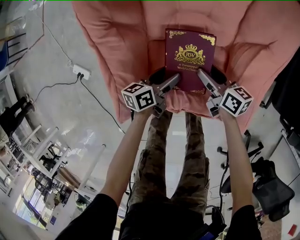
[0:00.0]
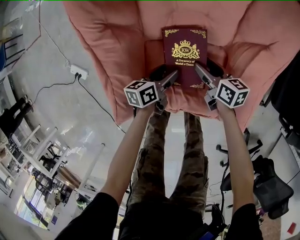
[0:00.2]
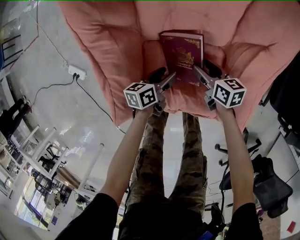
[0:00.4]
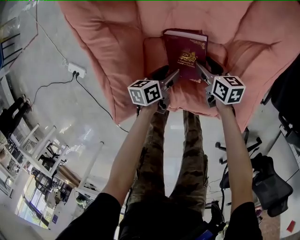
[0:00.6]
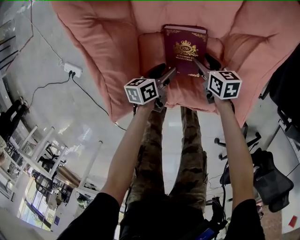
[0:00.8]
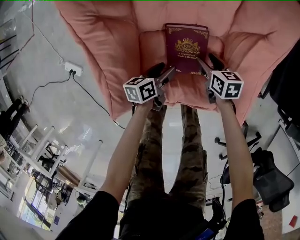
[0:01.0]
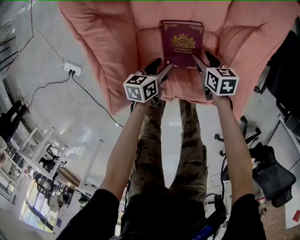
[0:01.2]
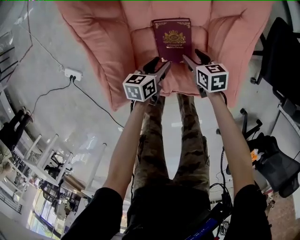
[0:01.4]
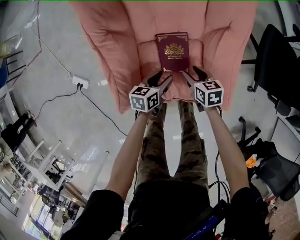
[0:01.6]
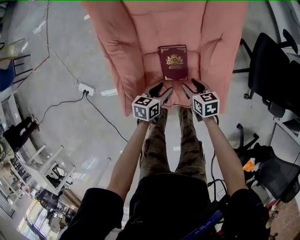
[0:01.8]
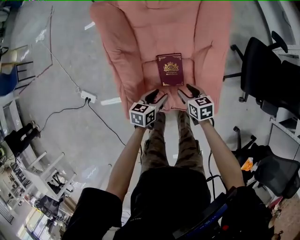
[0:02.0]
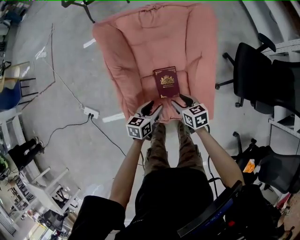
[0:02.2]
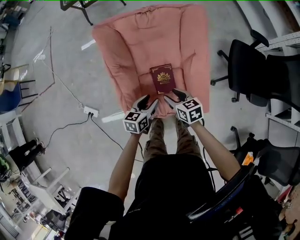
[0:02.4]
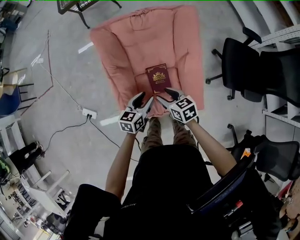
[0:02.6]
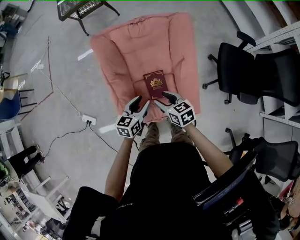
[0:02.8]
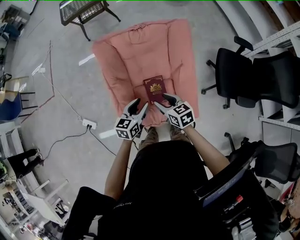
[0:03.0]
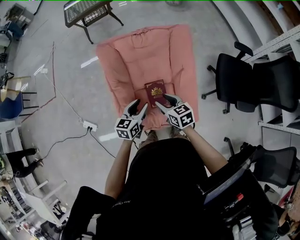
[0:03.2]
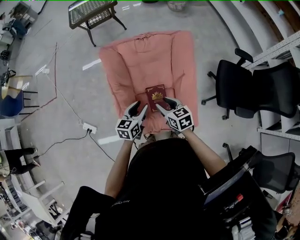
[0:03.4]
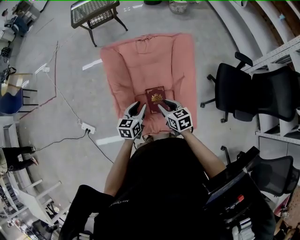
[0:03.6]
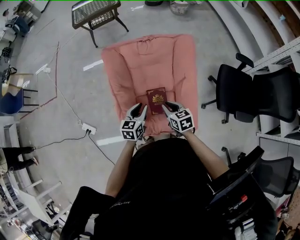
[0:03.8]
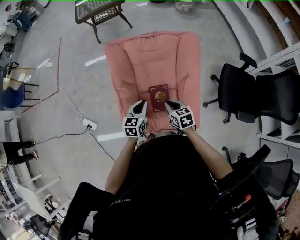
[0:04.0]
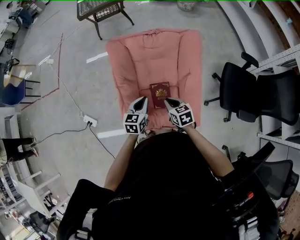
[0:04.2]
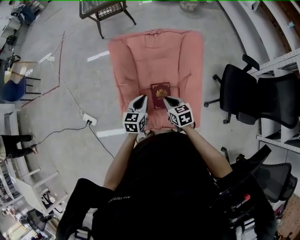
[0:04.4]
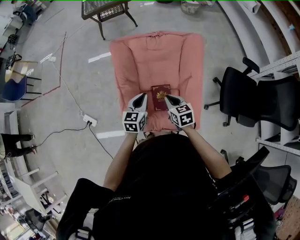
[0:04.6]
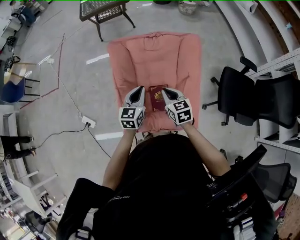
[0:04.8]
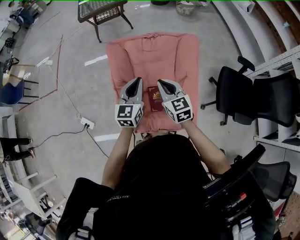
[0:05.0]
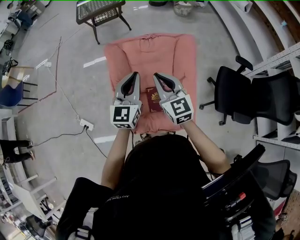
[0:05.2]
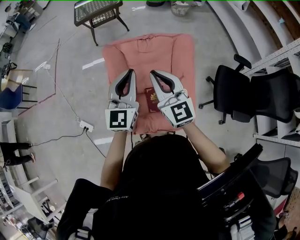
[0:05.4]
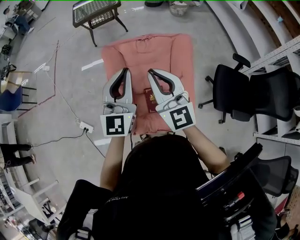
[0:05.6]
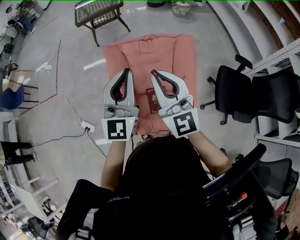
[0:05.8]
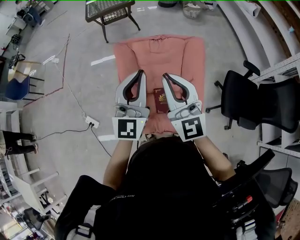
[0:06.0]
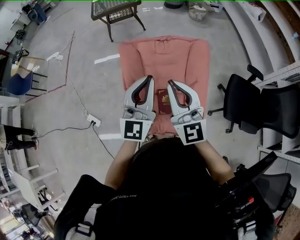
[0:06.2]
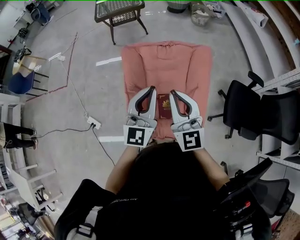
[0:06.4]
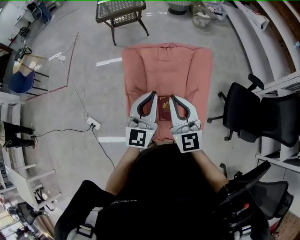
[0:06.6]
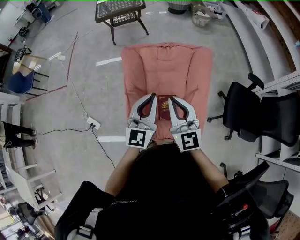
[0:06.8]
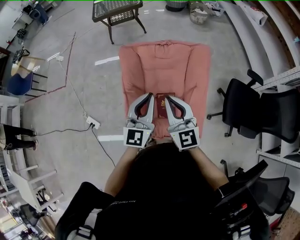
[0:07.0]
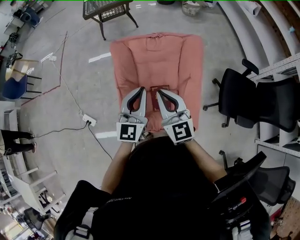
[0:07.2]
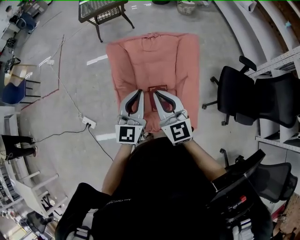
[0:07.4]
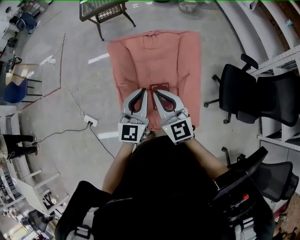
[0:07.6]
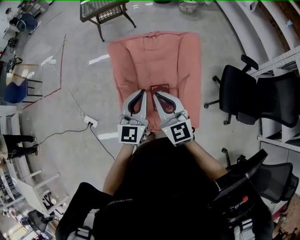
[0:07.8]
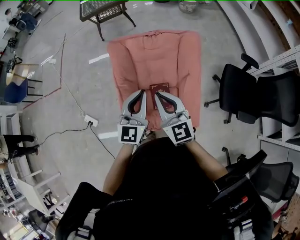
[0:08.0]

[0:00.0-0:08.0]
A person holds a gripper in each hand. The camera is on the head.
0:00.0 to 0:01.6: The right gripper goes about 5 cm backward, travels downward and back again, approximately 10 cm each way, and turns by some 30 degrees. The left gripper shifts some 5 cm upward.
0:01.6 to 0:03.2: Both grippers travel together upward, approximately 35 cm. The left gripper turns by some 30 degrees.
0:03.2 to 0:04.8: The left gripper travels forward and upward by about 10 cm, and closes its fingers. The right gripper moves about 5 cm, and closes its fingers.
0:04.8 to 0:06.4: Both grippers travel together upward, about 20 cm. The right gripper angles its fingers upward, by about 40 degrees. Meanwhile the left gripper swivels about 30 degrees.
0:06.4 to 0:08.0: The two grippers go approximately 5 cm downward.

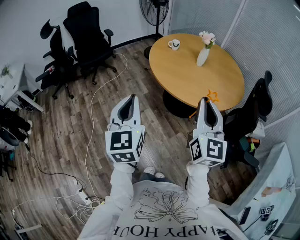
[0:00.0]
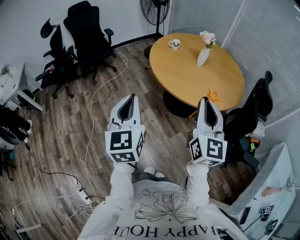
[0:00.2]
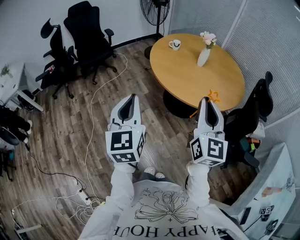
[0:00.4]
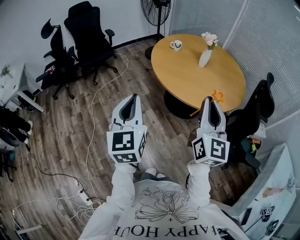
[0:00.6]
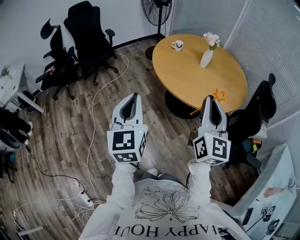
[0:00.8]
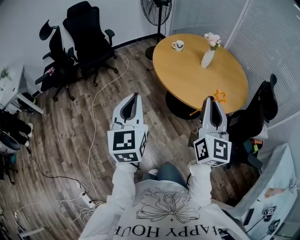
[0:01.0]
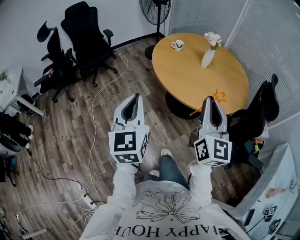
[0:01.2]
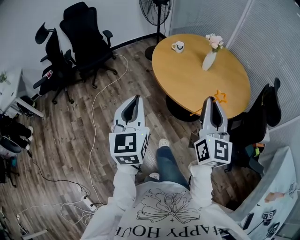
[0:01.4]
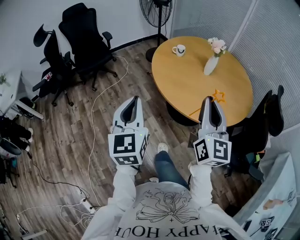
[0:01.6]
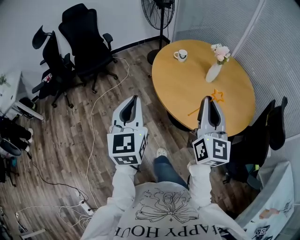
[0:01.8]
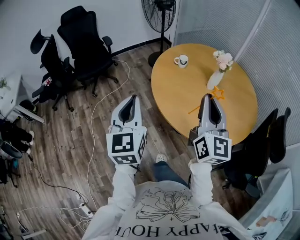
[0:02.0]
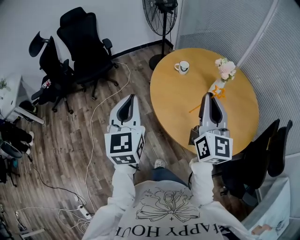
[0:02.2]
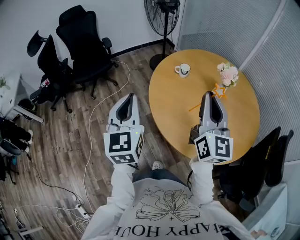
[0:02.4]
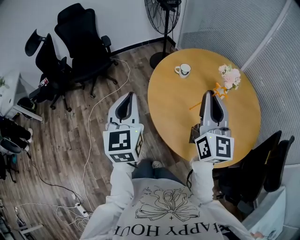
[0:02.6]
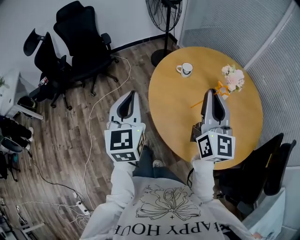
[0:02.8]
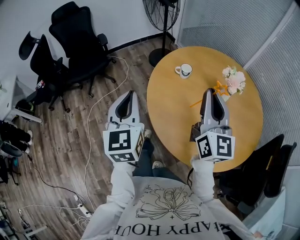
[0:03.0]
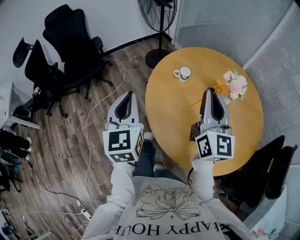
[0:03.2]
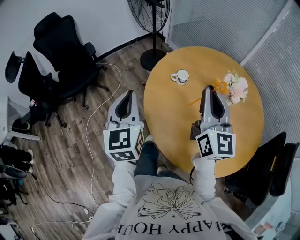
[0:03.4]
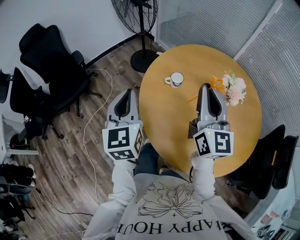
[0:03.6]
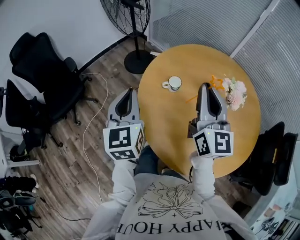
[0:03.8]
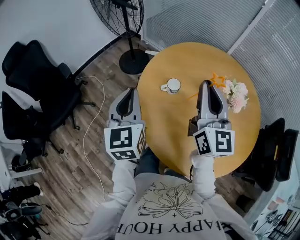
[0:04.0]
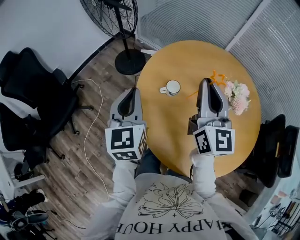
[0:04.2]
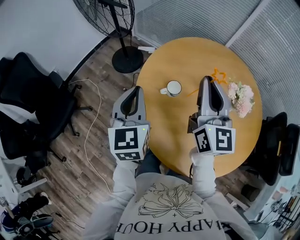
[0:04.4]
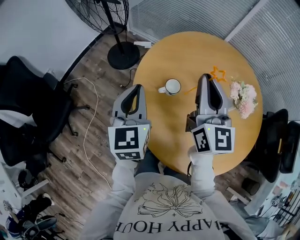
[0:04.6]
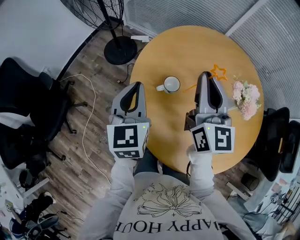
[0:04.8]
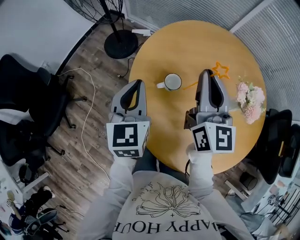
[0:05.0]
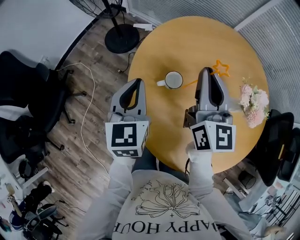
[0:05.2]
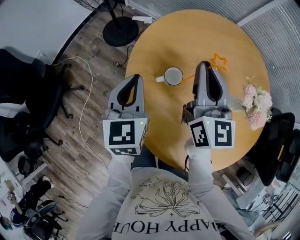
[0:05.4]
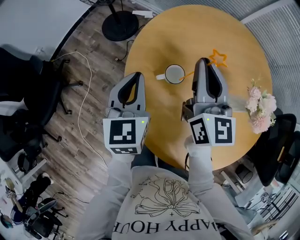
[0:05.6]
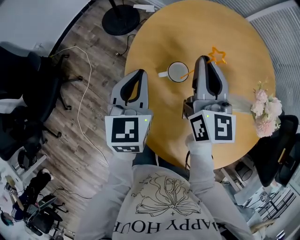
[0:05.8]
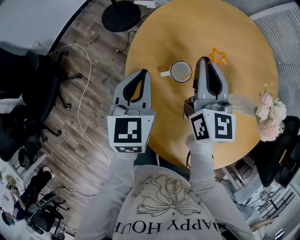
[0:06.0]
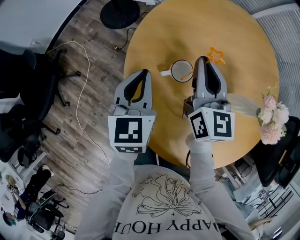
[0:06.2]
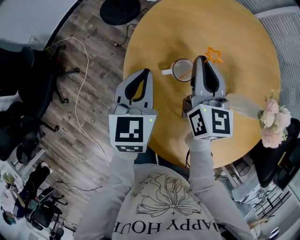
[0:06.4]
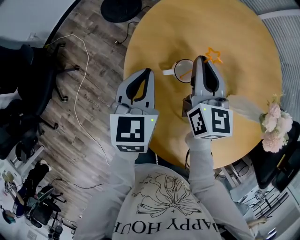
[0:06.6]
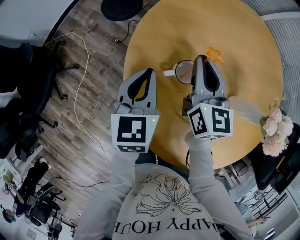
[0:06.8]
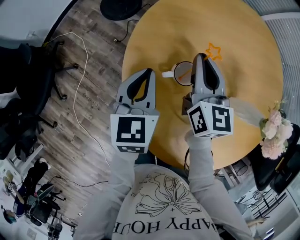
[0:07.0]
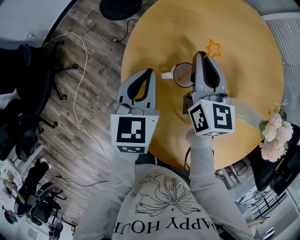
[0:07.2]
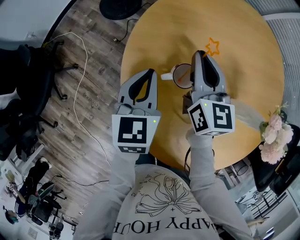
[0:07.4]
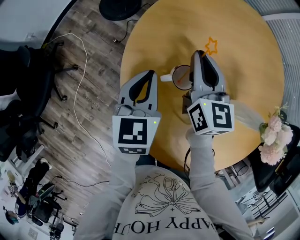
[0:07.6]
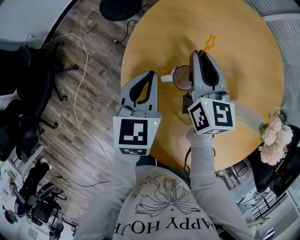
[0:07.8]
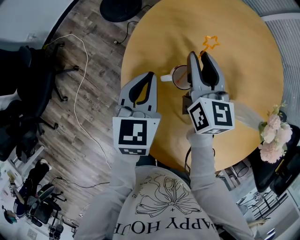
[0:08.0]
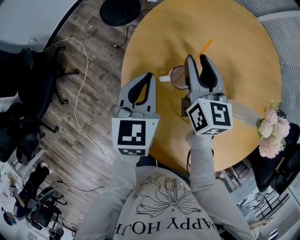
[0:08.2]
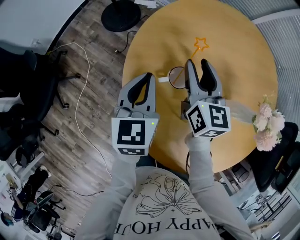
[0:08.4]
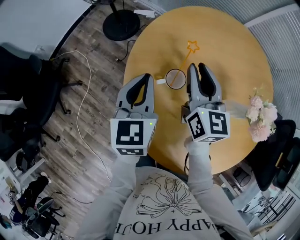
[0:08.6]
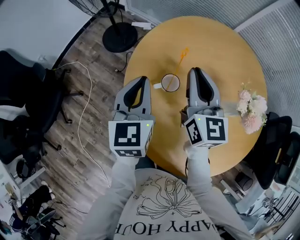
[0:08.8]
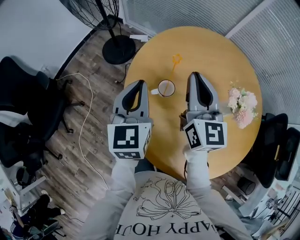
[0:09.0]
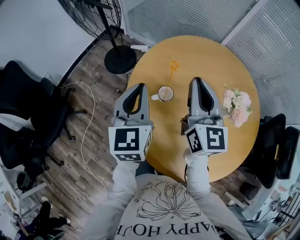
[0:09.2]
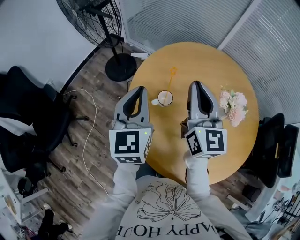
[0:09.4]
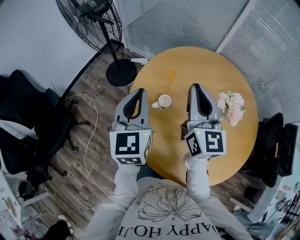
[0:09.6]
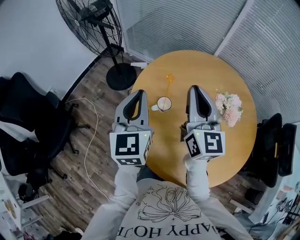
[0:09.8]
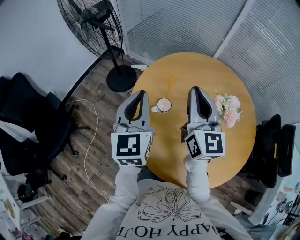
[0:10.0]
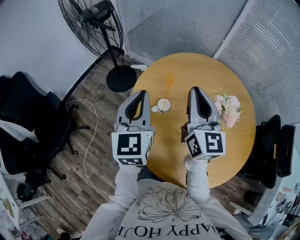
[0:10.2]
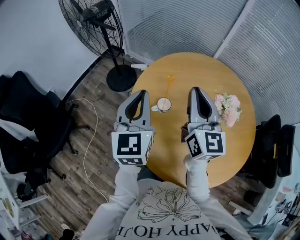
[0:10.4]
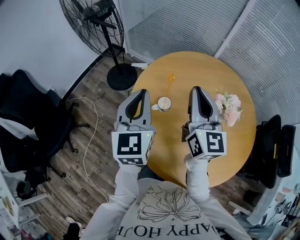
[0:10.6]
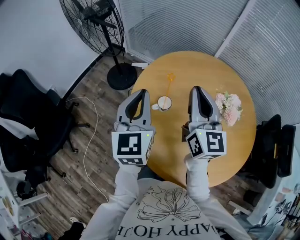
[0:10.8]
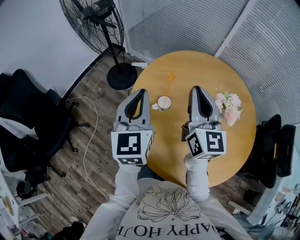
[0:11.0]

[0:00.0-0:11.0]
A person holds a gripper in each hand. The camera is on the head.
0:00.0 to 0:01.6: Both grippers move forward, about 15 cm.
0:01.6 to 0:03.2: The grippers both shift forward by some 40 cm.
0:03.2 to 0:04.8: The left gripper changes place by roughly 35 cm, and changes its angle by some 30 degrees. The right gripper moves approximately 25 cm, and turns by approximately 20 degrees.
0:04.8 to 0:06.2: The right gripper shifts roughly 20 cm downward and forward; the left gripper goes approximately 15 cm downward.
0:06.2 to 0:07.8: The left gripper moves some 5 cm; the right gripper is displaced downward by approximately 5 cm.
0:07.8 to 0:09.4: The left gripper moves upward, approximately 25 cm, and changes its angle by approximately 20 degrees. The right gripper is displaced upward and backward by about 30 cm, swivels about 20 degrees, and opens, then closes once more.
0:09.4 to 0:11.0: The grippers move only a little.

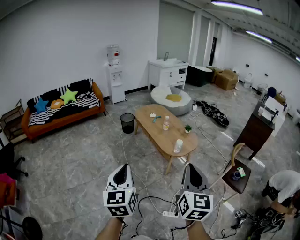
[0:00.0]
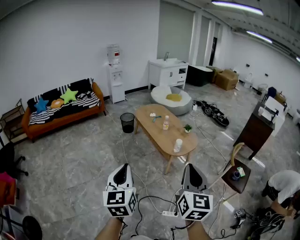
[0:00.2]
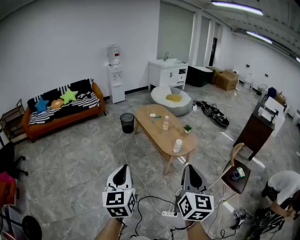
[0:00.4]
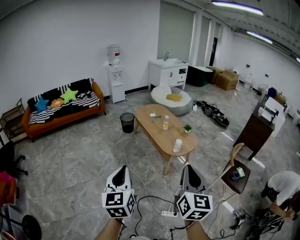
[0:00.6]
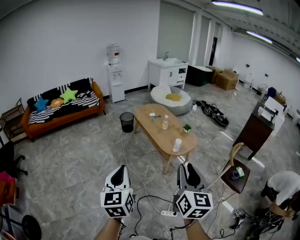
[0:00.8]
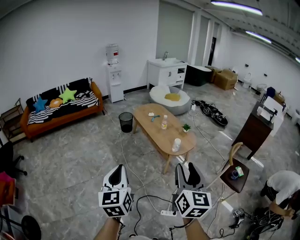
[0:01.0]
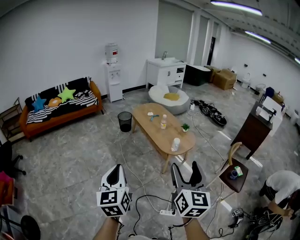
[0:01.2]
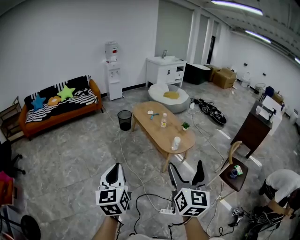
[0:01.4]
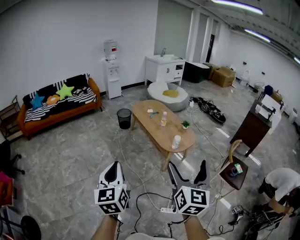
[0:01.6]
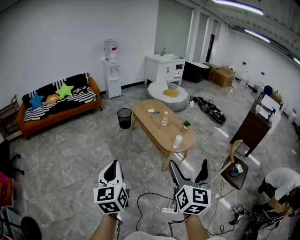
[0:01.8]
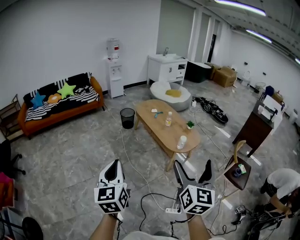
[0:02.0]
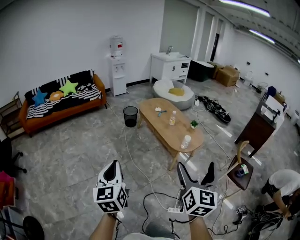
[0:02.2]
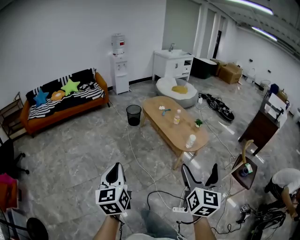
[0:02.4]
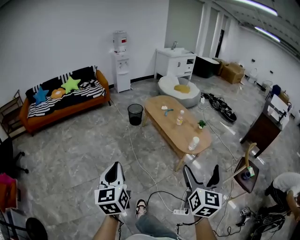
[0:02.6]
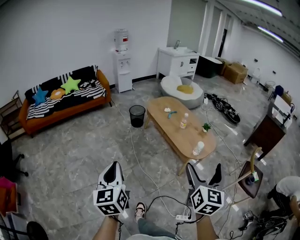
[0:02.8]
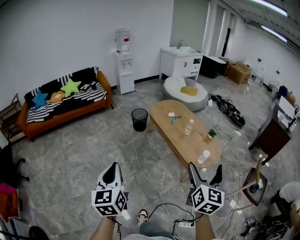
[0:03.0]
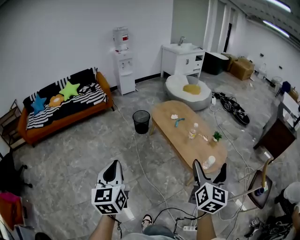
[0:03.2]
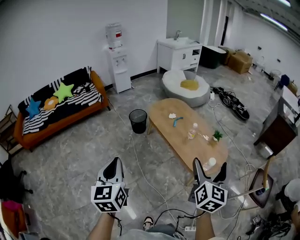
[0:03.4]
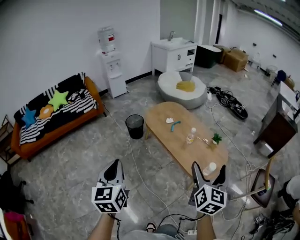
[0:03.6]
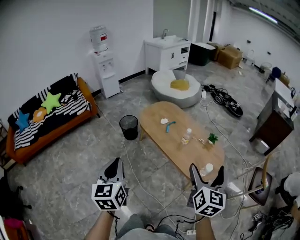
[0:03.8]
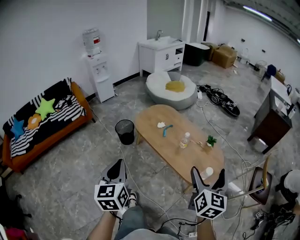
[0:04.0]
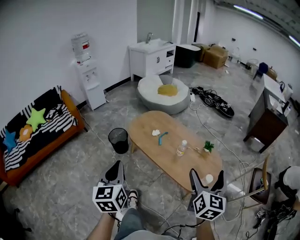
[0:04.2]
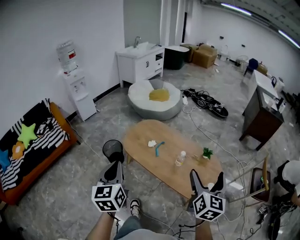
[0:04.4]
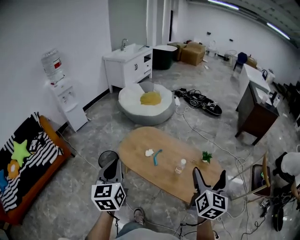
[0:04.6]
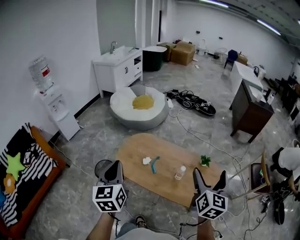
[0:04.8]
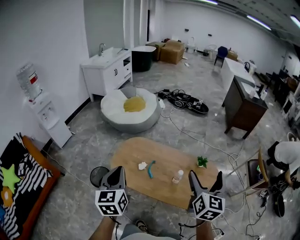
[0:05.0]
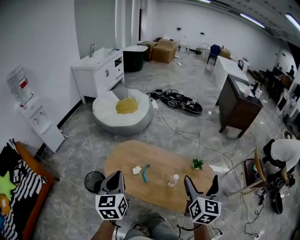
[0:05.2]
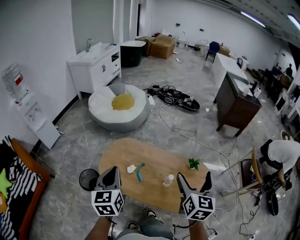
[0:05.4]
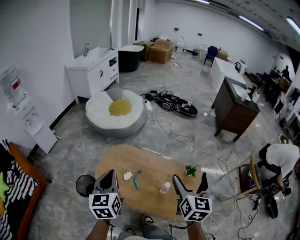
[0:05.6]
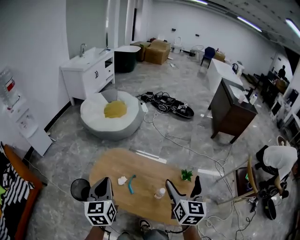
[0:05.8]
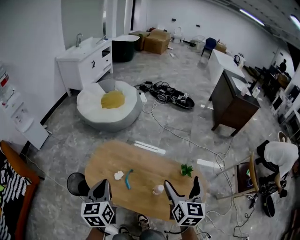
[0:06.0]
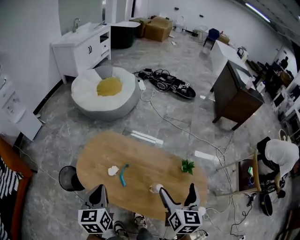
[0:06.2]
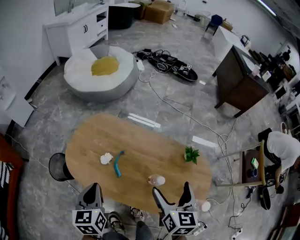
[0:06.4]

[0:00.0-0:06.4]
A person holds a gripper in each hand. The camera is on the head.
0:00.0 to 0:01.6: The right gripper opens up, while the left gripper ends up roughly 5 cm from where it was.
0:01.6 to 0:03.2: The right gripper moves forward, approximately 35 cm; the left gripper moves forward and to the left, about 35 cm.
0:03.2 to 0:04.8: Both grippers are carried roughly 50 cm. The right gripper rotates roughly 30 degrees; the left gripper swivels approximately 30 degrees.
0:04.8 to 0:06.4: The two grippers go approximately 30 cm downward and forward. The left gripper rotates about 20 degrees. Meanwhile the right gripper swivels roughly 20 degrees.
